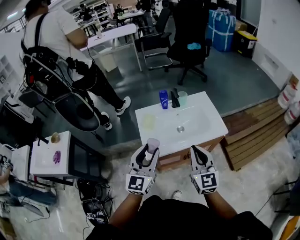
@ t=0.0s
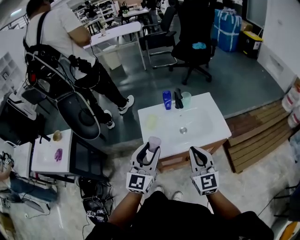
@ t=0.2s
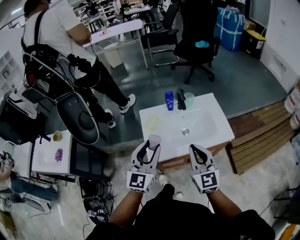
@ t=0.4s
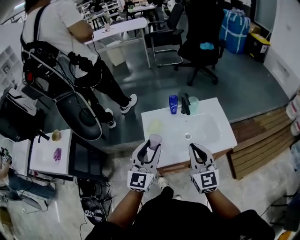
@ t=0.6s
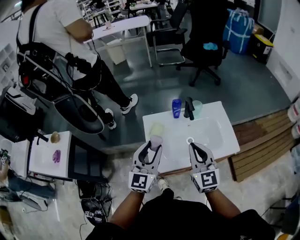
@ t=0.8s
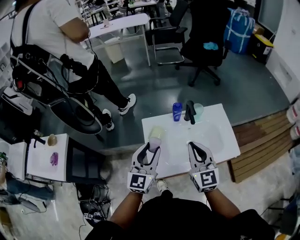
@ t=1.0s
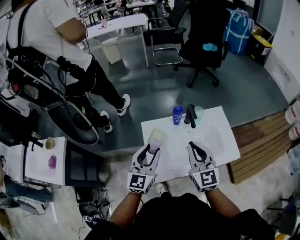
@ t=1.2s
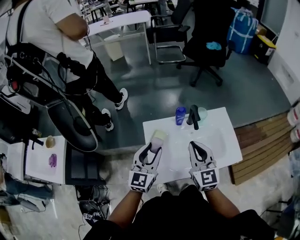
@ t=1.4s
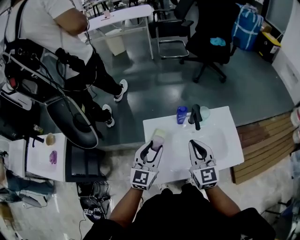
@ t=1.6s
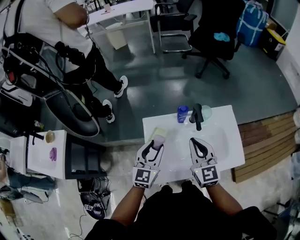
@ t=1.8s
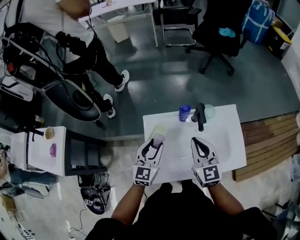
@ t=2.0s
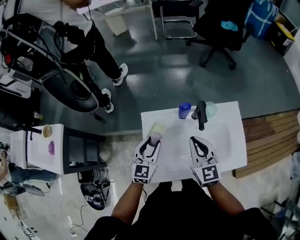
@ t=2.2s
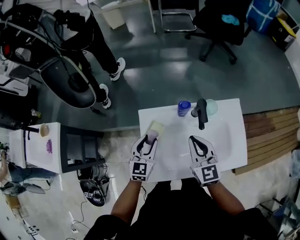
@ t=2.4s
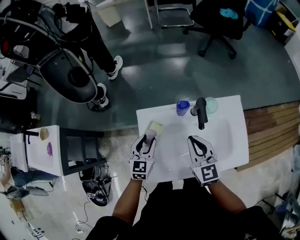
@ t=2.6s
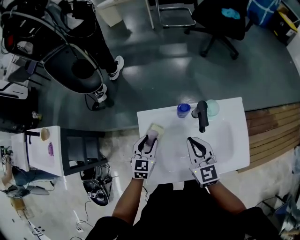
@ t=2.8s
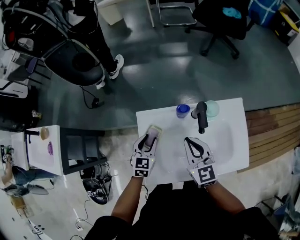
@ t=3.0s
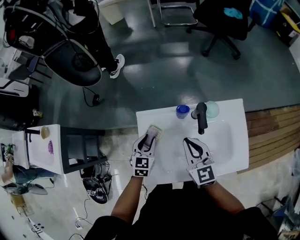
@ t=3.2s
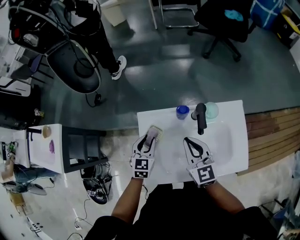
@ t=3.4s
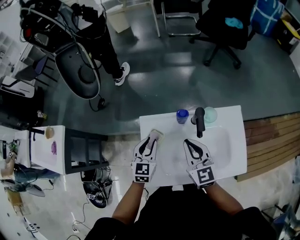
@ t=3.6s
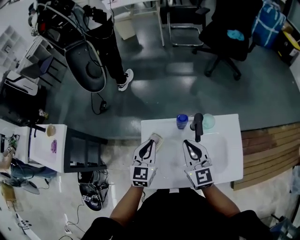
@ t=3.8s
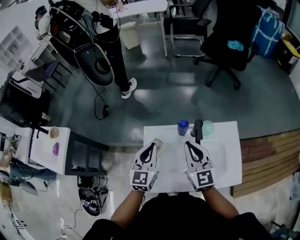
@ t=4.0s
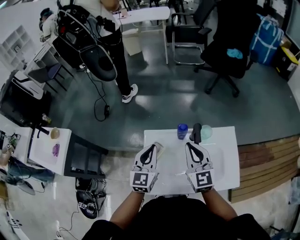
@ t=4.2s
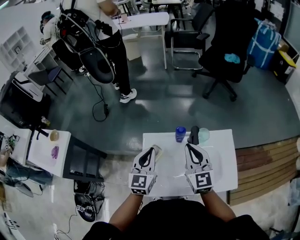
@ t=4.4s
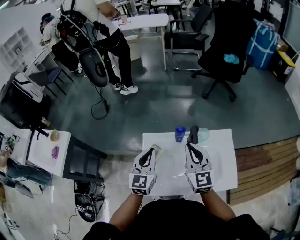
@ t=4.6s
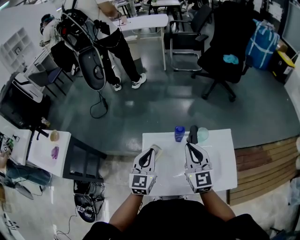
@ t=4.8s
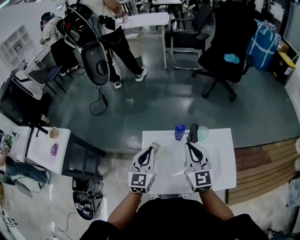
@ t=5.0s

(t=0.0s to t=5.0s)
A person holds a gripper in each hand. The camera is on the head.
t=0.0s - t=1.6s: The left gripper goes roughly 25 cm forward and downward, while the right gripper goes roughly 25 cm forward.
t=1.6s - t=3.4s: The left gripper heads downward and forward, covering approximately 20 cm, and changes its angle by approximately 30 degrees, while the right gripper shifts about 10 cm downward and forward.
t=3.4s - t=5.0s: Both grippers move upward, roughly 15 cm. The left gripper swivels some 20 degrees, and closes.

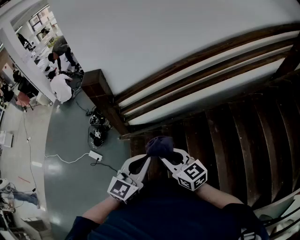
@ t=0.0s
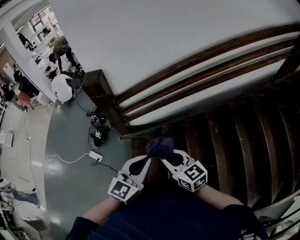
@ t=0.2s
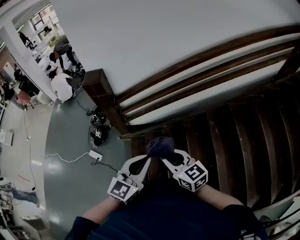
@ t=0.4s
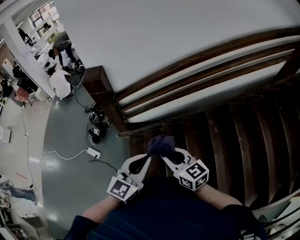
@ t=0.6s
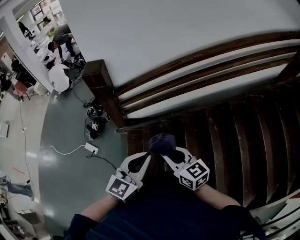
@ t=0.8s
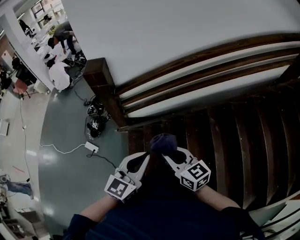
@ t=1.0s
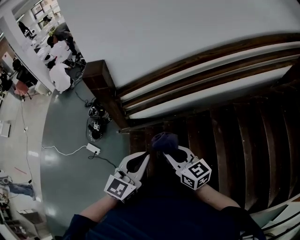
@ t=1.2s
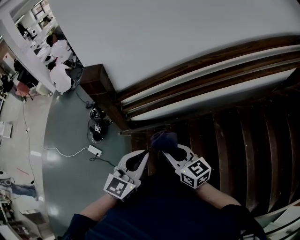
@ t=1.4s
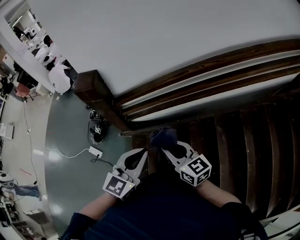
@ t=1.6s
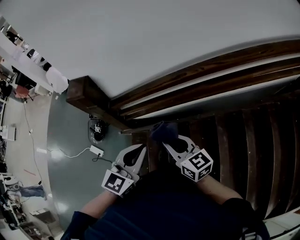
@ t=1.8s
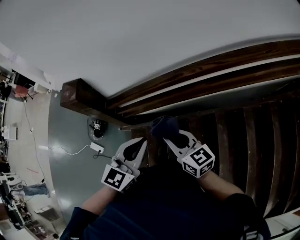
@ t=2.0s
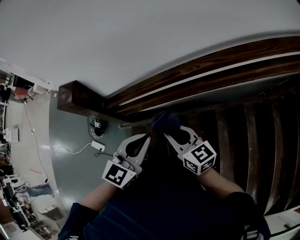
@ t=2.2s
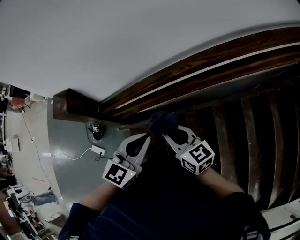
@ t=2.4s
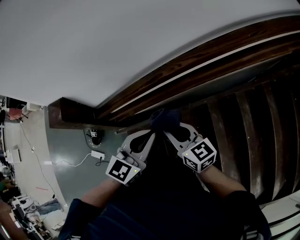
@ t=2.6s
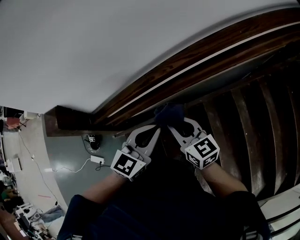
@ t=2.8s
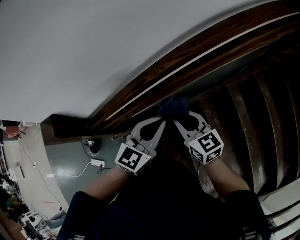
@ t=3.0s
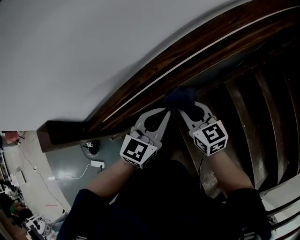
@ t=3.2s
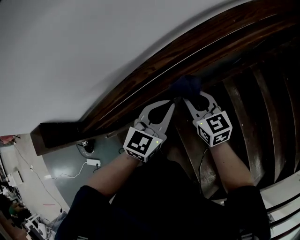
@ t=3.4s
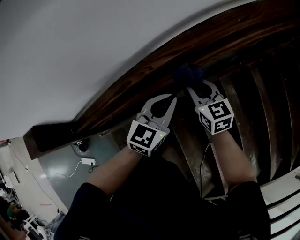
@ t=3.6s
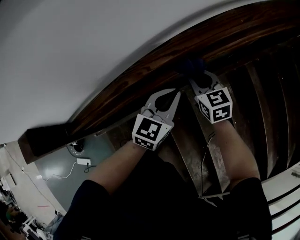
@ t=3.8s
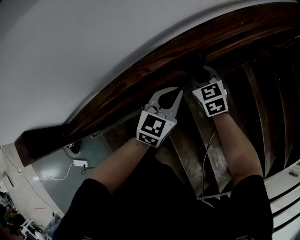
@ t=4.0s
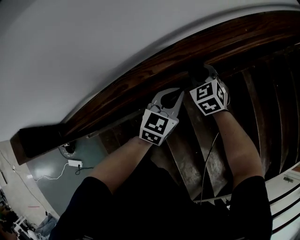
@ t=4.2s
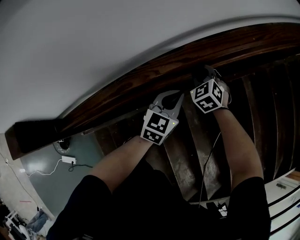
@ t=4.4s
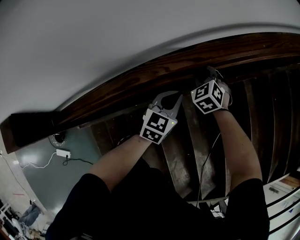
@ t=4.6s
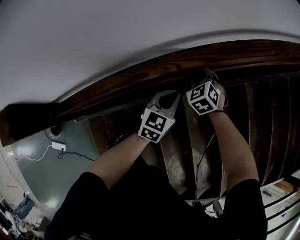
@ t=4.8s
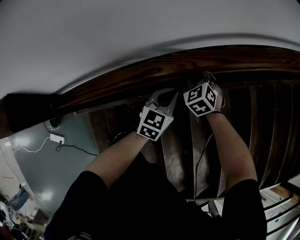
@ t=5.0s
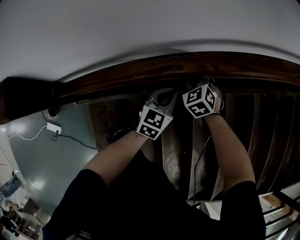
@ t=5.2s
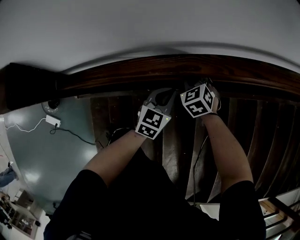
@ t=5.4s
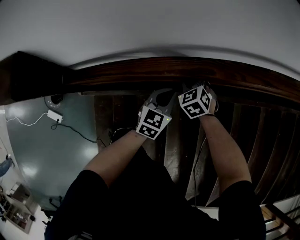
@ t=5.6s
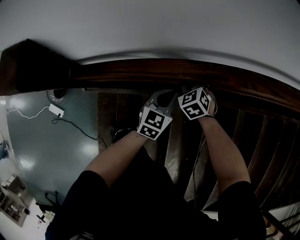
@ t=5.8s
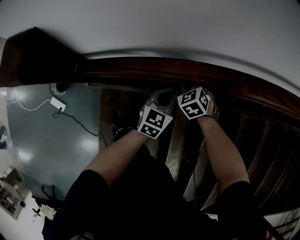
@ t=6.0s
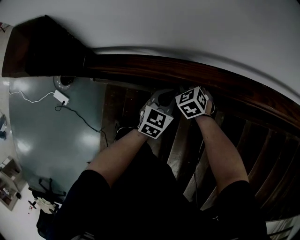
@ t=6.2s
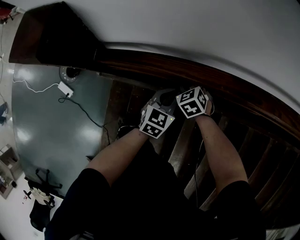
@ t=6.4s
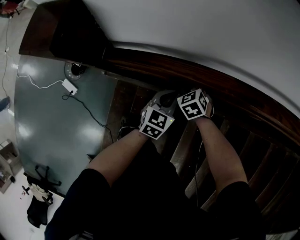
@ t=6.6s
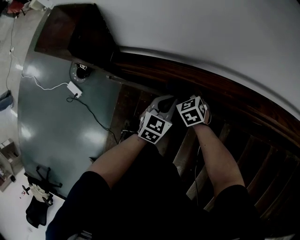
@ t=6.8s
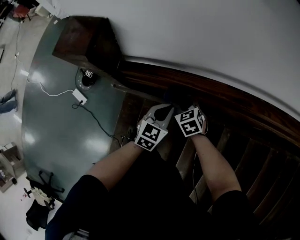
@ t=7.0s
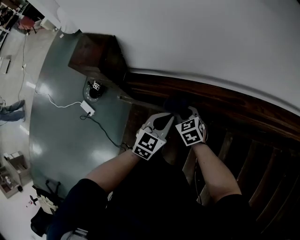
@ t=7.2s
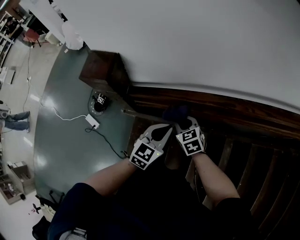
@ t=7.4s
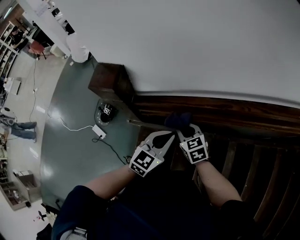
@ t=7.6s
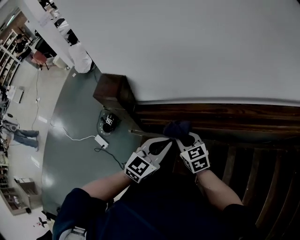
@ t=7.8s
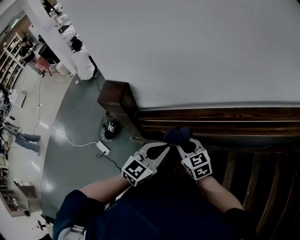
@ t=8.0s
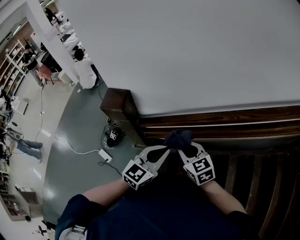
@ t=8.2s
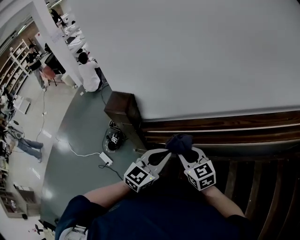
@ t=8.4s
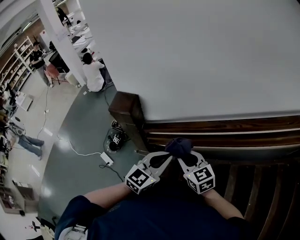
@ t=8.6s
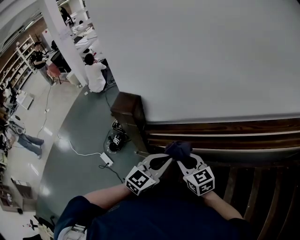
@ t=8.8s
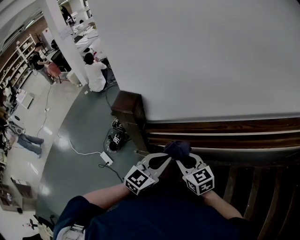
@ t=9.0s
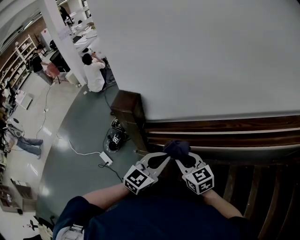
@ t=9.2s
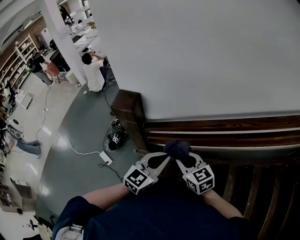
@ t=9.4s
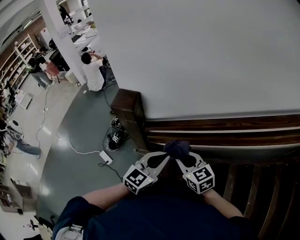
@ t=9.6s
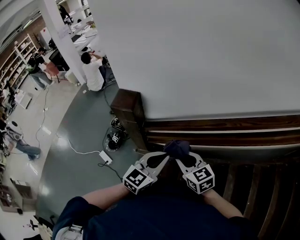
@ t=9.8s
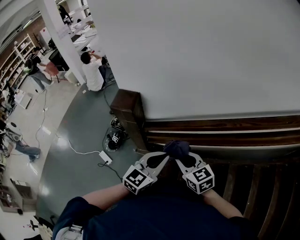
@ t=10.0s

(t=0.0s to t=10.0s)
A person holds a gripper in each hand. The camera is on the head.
t=0.0s - t=1.4s: The grippers both shift forward by roughly 10 cm.
t=1.4s - t=2.8s: Both grippers travel together forward and to the right, about 35 cm.
t=2.8s - t=4.2s: The right gripper goes roughly 30 cm forward and to the right, and changes its angle by roughly 60 degrees. The left gripper travels forward, to the right and downward by roughly 25 cm.
t=4.2s - t=5.8s: The two grippers go some 35 cm to the left, downward and backward. The right gripper turns by about 30 degrees. Meanwhile the left gripper changes its angle by roughly 30 degrees.
t=5.8s - t=7.2s: The right gripper heads to the left and backward, covering approximately 20 cm, and rotates about 20 degrees. The left gripper goes some 20 cm to the left, backward and upward.
t=7.2s - t=8.6s: Both grippers travel together upward and backward, approximately 30 cm. The right gripper changes its angle by about 30 degrees.
t=8.6s - t=10.0s: The grippers stay close to where they were, moving slightly.

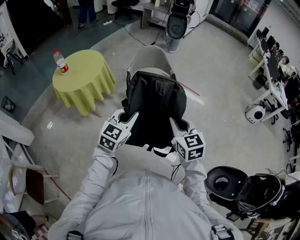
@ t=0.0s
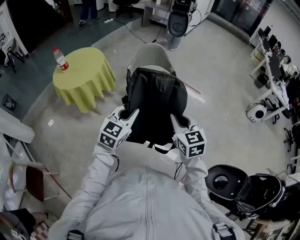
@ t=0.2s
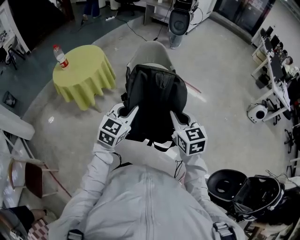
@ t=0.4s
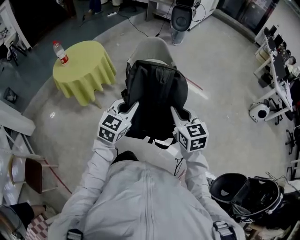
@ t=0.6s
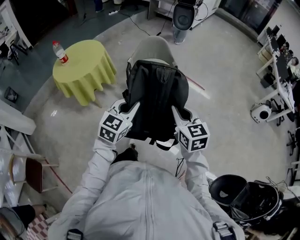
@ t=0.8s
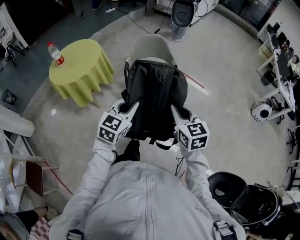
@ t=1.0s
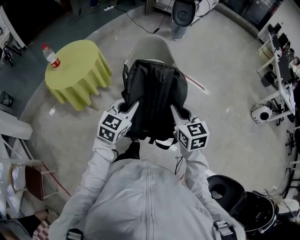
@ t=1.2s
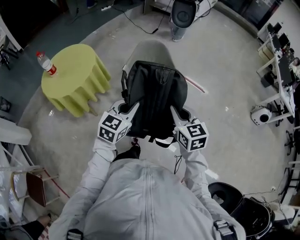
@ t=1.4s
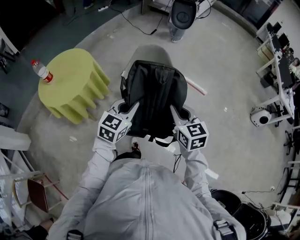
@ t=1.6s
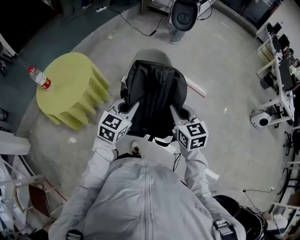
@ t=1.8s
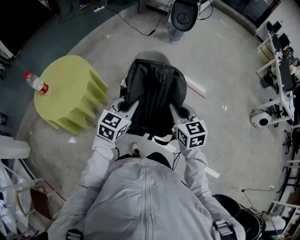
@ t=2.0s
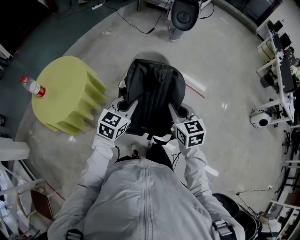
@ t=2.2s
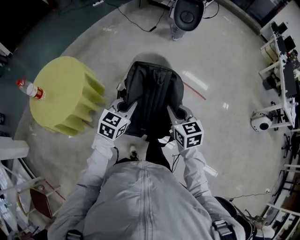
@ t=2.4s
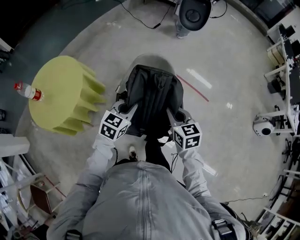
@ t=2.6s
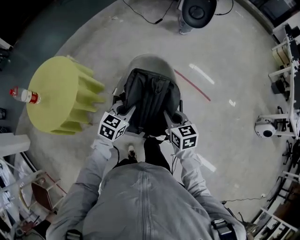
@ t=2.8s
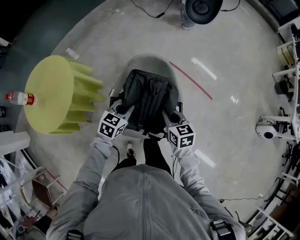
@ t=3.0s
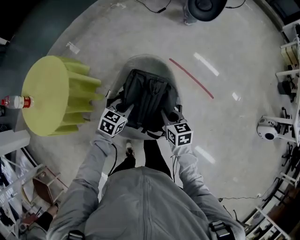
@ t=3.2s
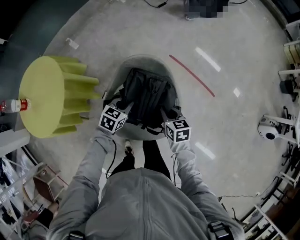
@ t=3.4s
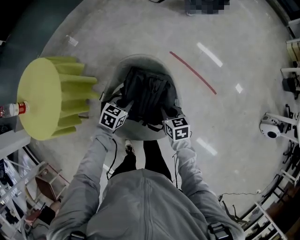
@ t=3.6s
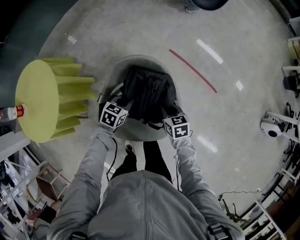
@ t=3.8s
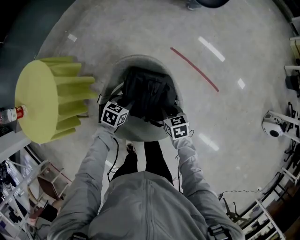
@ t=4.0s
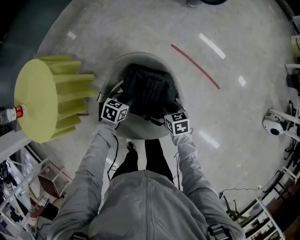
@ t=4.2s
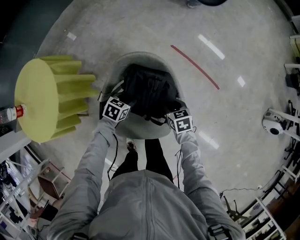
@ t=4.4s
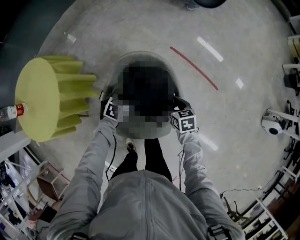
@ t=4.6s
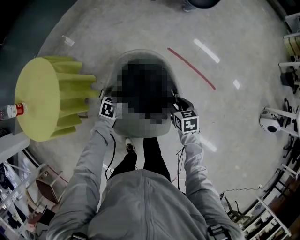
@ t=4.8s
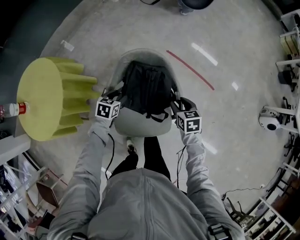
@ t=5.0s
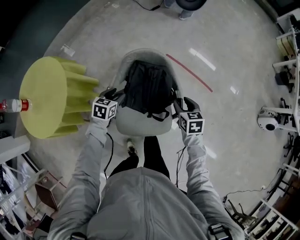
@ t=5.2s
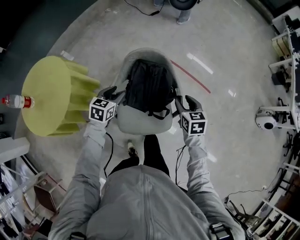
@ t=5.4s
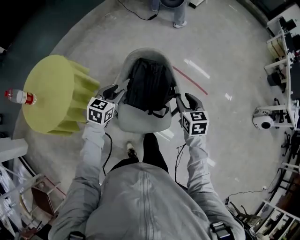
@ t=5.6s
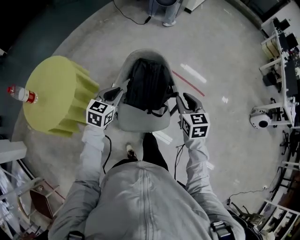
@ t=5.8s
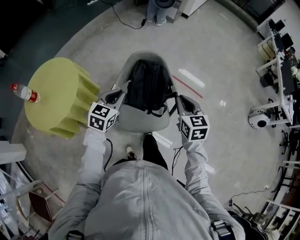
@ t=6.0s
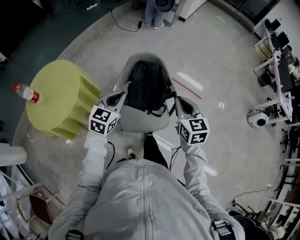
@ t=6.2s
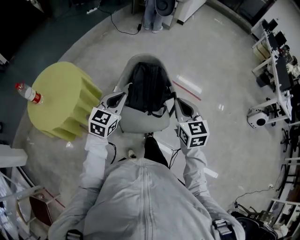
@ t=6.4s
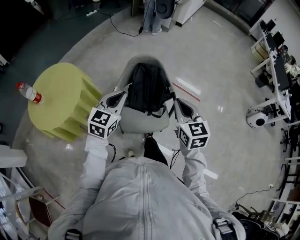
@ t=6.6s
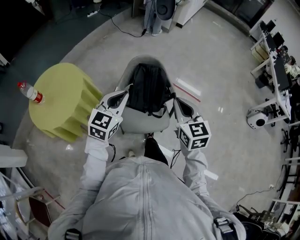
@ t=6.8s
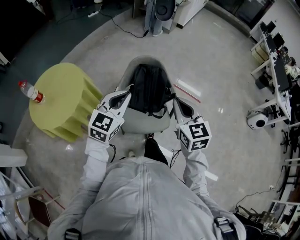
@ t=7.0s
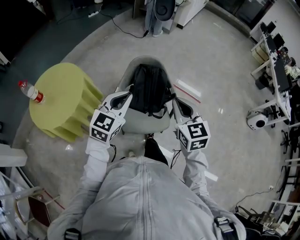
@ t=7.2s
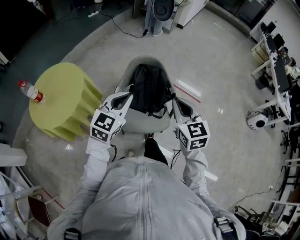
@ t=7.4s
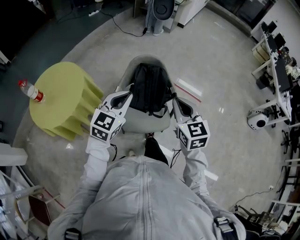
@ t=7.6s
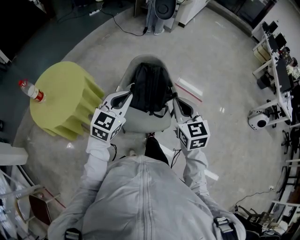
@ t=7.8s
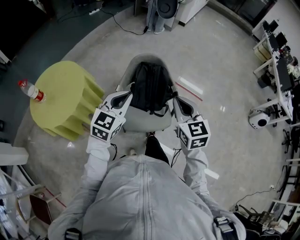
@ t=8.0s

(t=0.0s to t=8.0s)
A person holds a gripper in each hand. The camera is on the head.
t=0.0s - t=1.6s: Both grippers travel together forward, roughly 30 cm.
t=1.6s - t=3.2s: Both grippers move forward and downward, roughly 40 cm. The left gripper changes its angle by some 30 degrees. Meanwhile the right gripper turns by approximately 30 degrees.
t=3.2s - t=4.8s: The right gripper shifts roughly 10 cm downward, to the right and forward, and opens up. Meanwhile the left gripper shifts some 15 cm downward, and opens its fingers.
t=4.8s - t=6.4s: The two grippers go about 40 cm upward and backward. The right gripper angles its fingers upward, by roughly 30 degrees, and closes up, while the left gripper angles its fingers upward, by roughly 40 degrees, and closes.
t=6.4s - t=8.0s: The left gripper shifts by some 5 cm.
